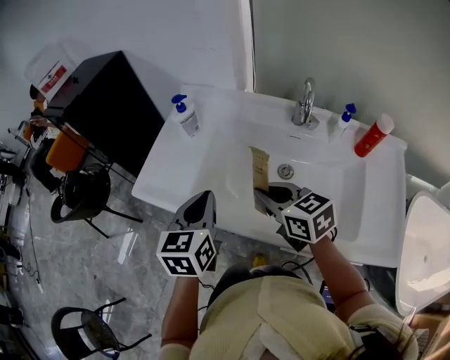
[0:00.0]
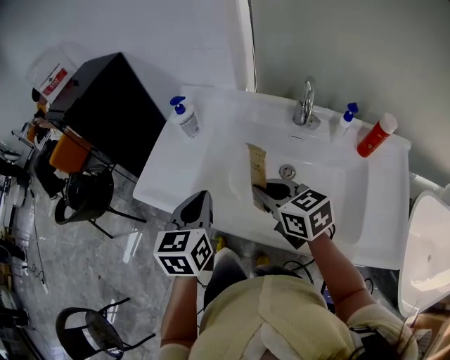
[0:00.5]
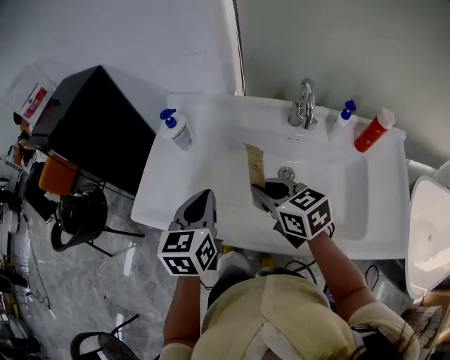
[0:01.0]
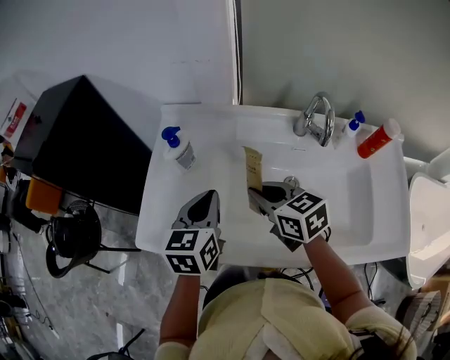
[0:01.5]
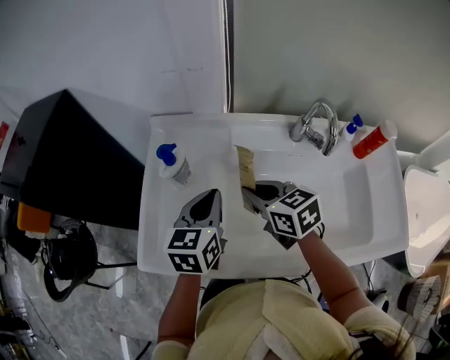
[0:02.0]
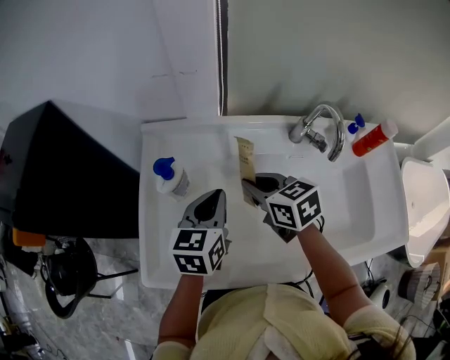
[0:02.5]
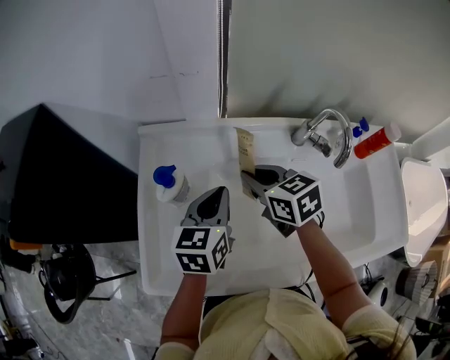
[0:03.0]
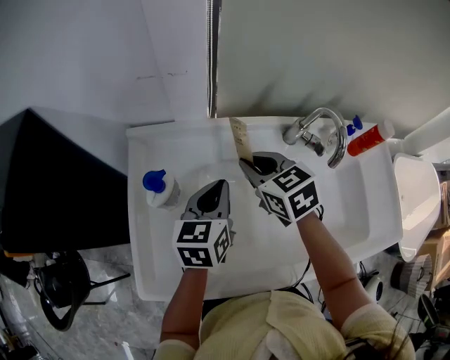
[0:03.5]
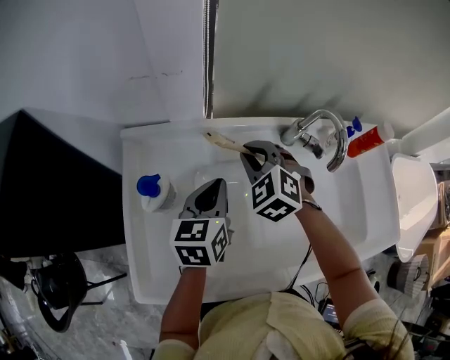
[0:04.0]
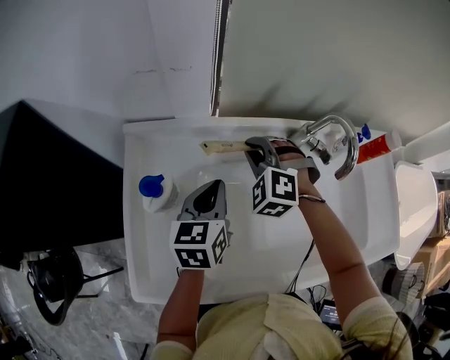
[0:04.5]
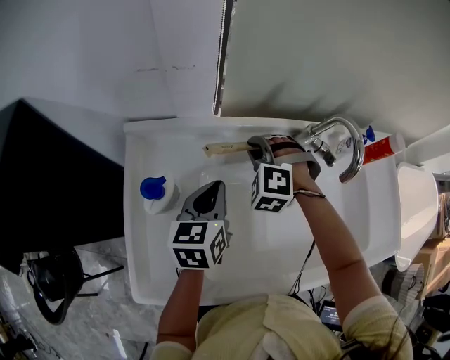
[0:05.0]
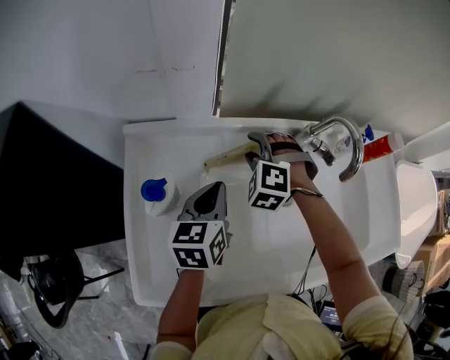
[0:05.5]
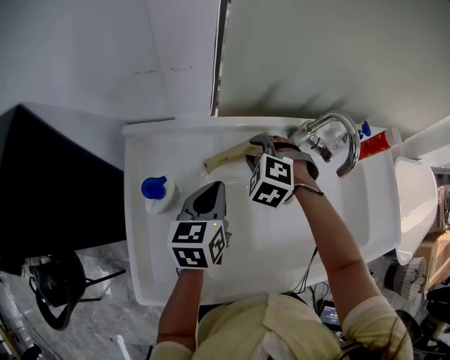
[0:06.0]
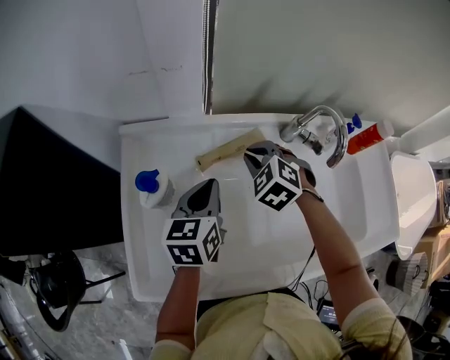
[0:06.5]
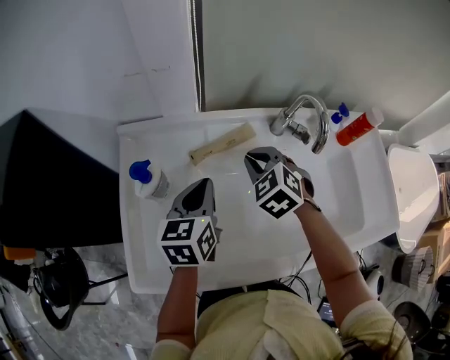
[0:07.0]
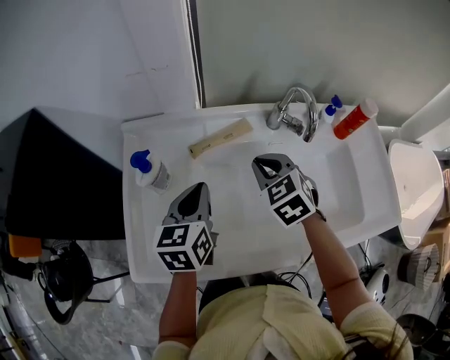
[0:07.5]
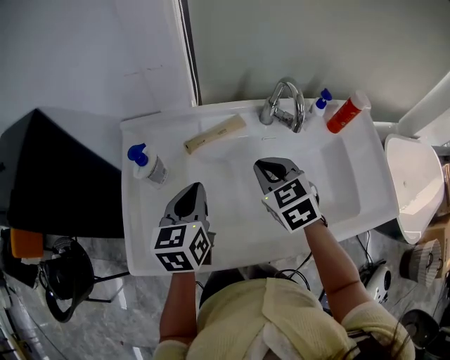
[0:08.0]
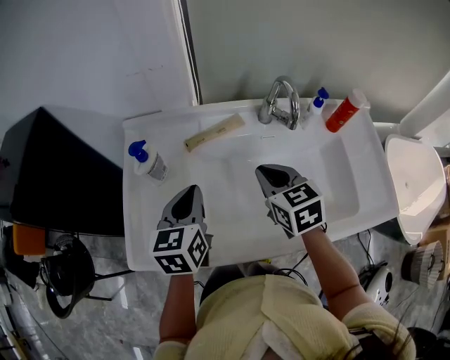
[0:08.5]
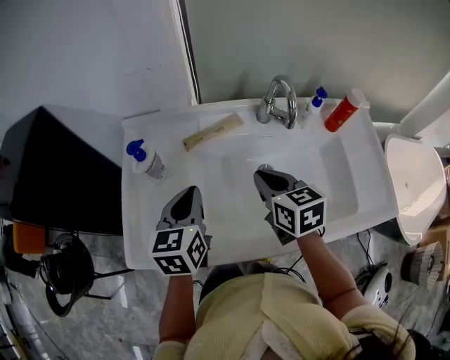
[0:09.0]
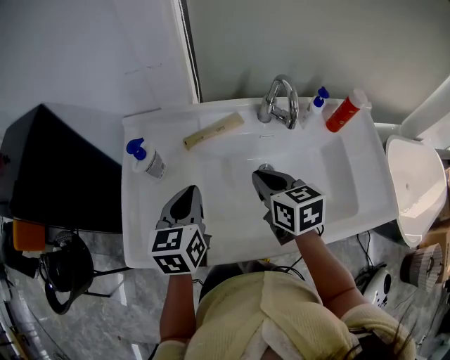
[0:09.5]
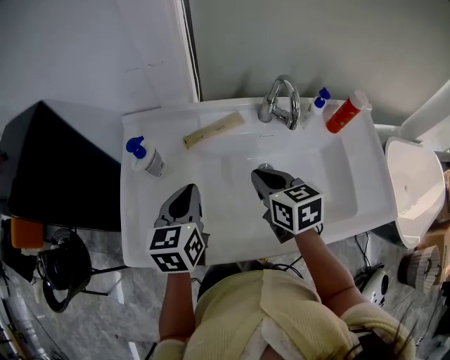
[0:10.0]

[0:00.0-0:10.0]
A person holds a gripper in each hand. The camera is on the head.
0:00.0 to 0:02.0: Both grippers move forward, roughly 20 cm. The left gripper changes its angle by roughly 20 degrees.
0:02.0 to 0:04.0: The left gripper goes about 10 cm forward, while the right gripper shifts about 15 cm forward, and twists about 40 degrees counterclockwise, seen from behind.
0:04.0 to 0:06.0: The right gripper goes some 5 cm downward, swivels some 20 degrees, and opens up.
0:06.0 to 0:08.0: The left gripper moves backward and upward, approximately 10 cm; the right gripper travels backward, upward and to the right by roughly 20 cm, rotates around the line of its fingers by approximately 40 degrees, clockwise from behind, and closes its fingers.
0:08.0 to 0:10.0: The right gripper rotates approximately 30 degrees.

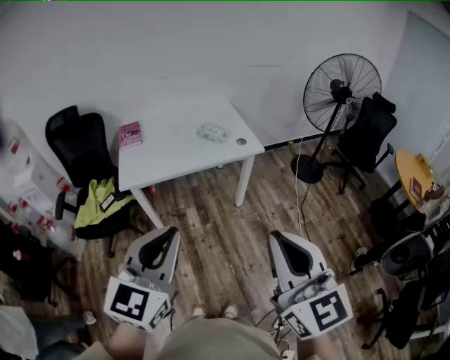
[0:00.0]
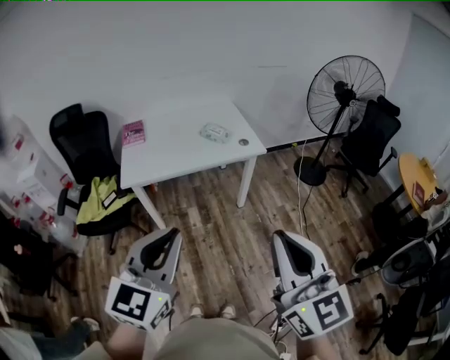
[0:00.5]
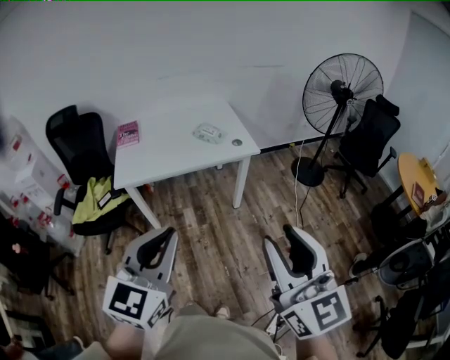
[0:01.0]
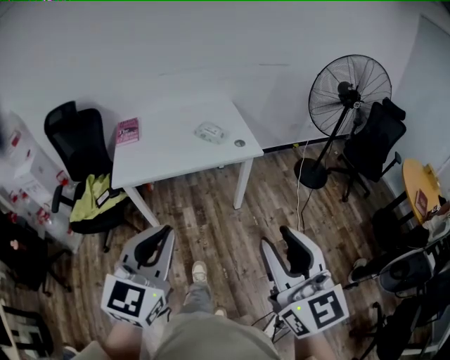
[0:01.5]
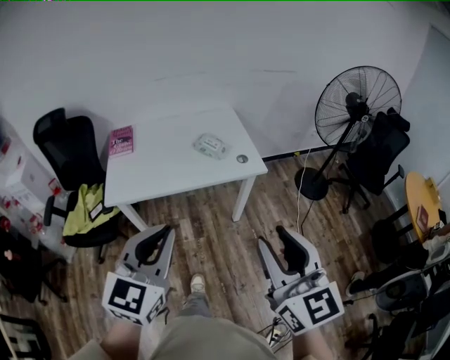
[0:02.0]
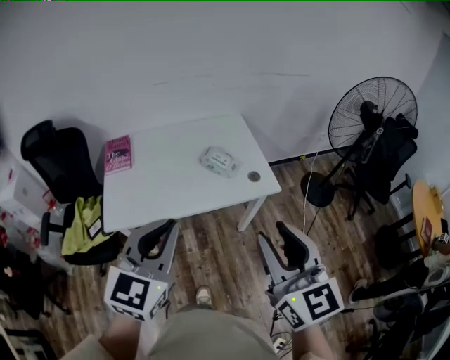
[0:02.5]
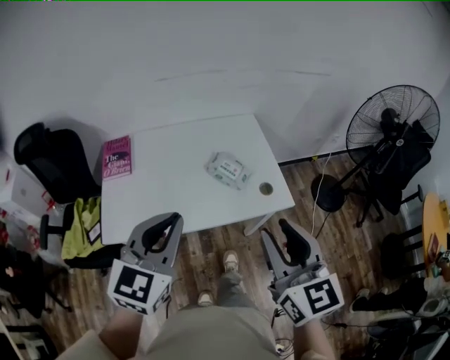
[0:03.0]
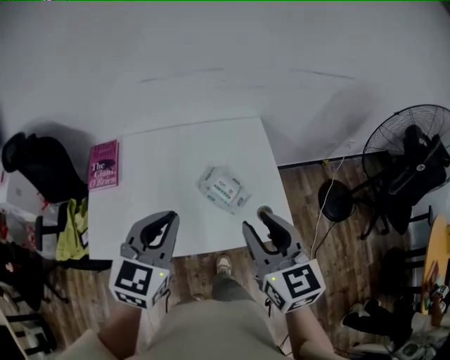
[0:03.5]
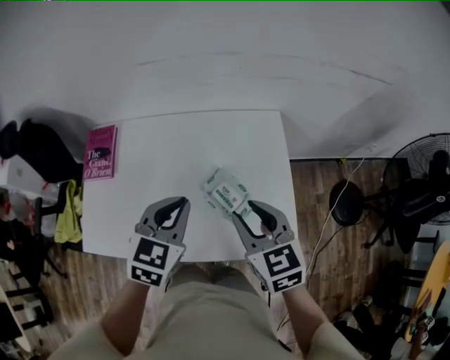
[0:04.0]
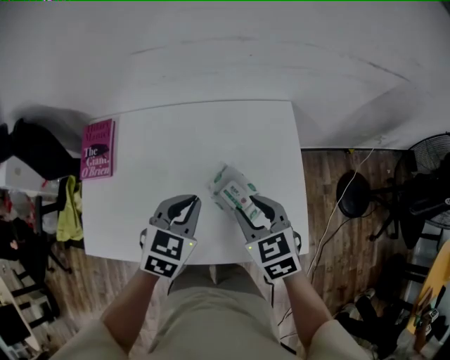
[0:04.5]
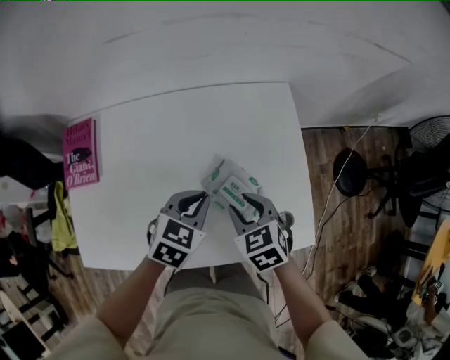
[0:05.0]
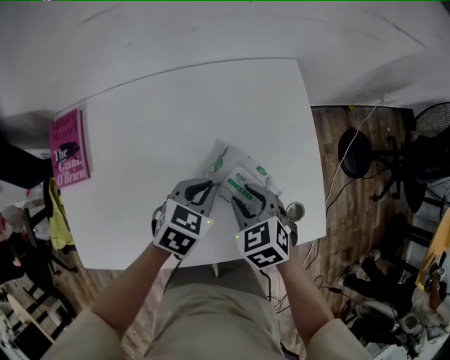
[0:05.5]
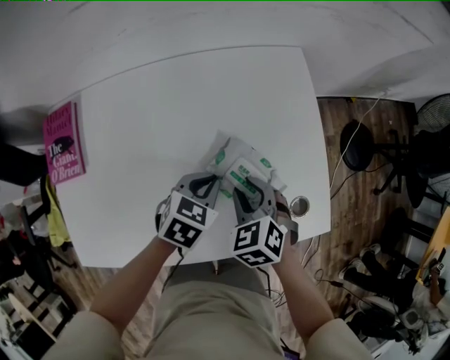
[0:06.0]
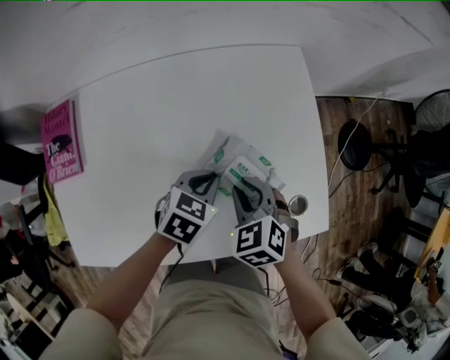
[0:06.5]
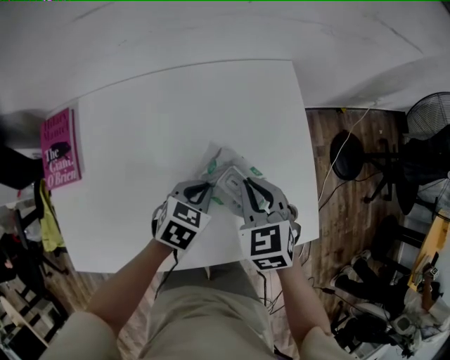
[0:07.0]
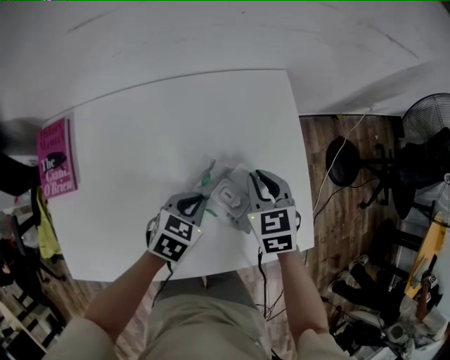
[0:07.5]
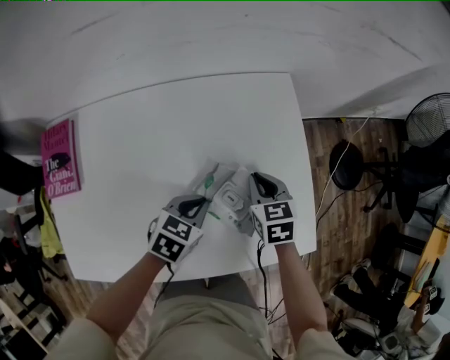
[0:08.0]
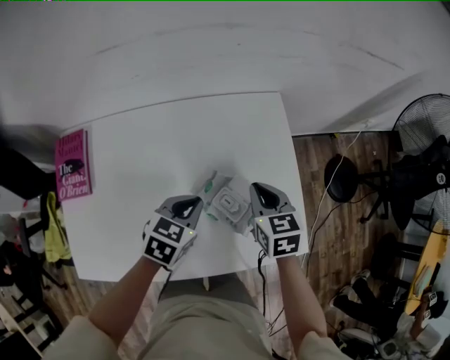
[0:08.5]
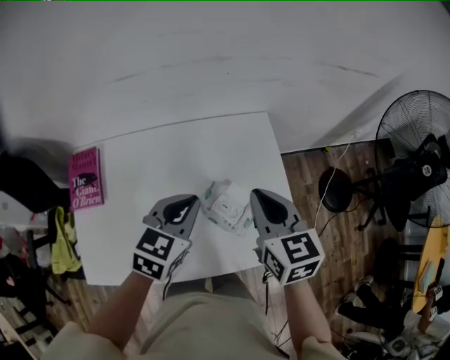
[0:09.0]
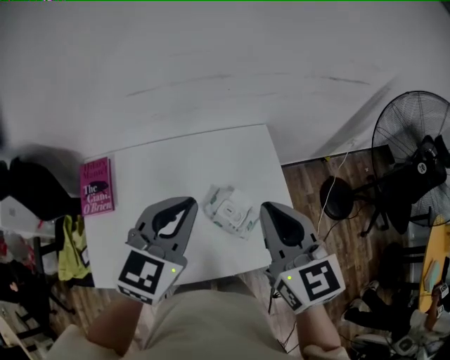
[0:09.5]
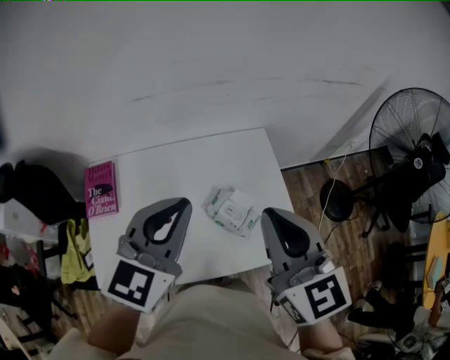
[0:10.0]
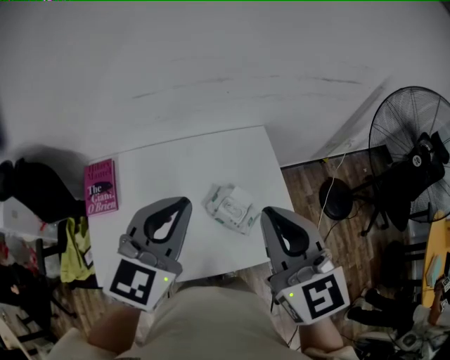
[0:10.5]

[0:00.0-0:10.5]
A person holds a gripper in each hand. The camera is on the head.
0:00.0 to 0:02.0: Both grippers move forward, approximately 20 cm. The right gripper opens up.
0:02.0 to 0:04.0: The pair of grippers is taken forward, approximately 60 cm. The left gripper rotates approximately 30 degrees. The right gripper turns by some 30 degrees.
0:04.0 to 0:06.5: The two grippers go roughly 25 cm downward. The right gripper swivels about 30 degrees, while the left gripper turns by roughly 30 degrees.
0:06.5 to 0:08.5: The right gripper goes some 10 cm forward, upward and to the right, and swivels about 30 degrees; the left gripper goes some 10 cm upward.
0:08.5 to 0:10.5: The right gripper goes some 35 cm upward and backward, and tilts its fingers about 30 degrees upward. Meanwhile the left gripper goes about 30 cm upward, and tips its fingers upward by about 30 degrees.

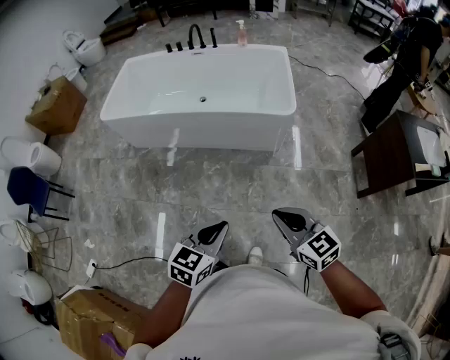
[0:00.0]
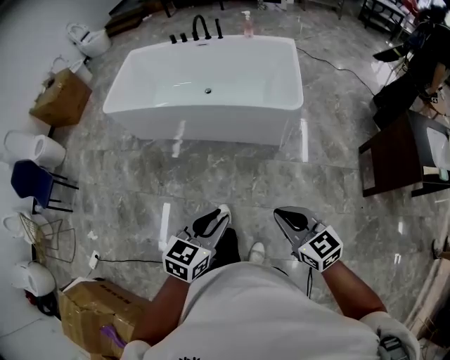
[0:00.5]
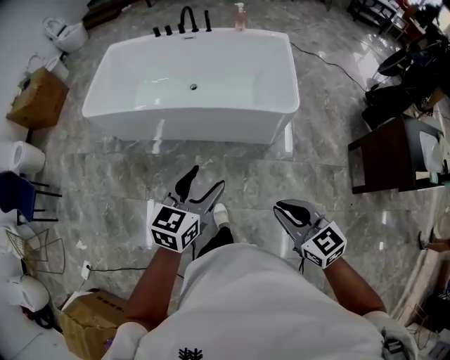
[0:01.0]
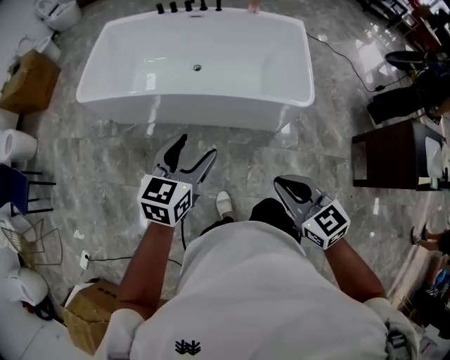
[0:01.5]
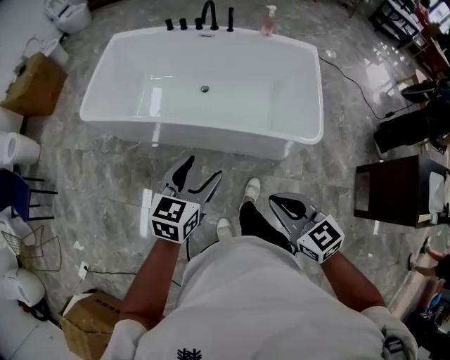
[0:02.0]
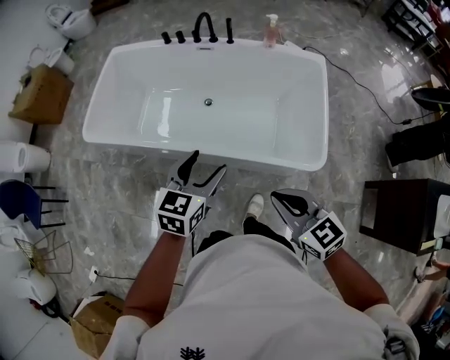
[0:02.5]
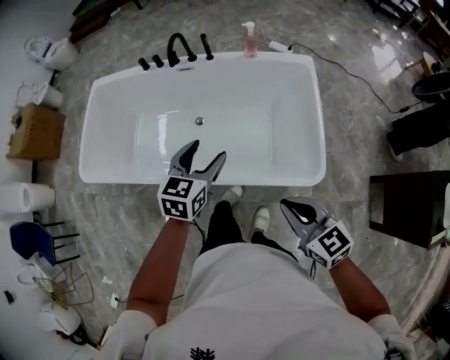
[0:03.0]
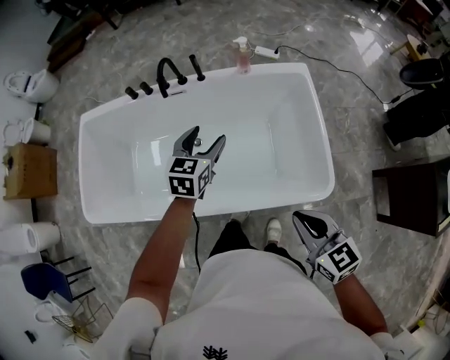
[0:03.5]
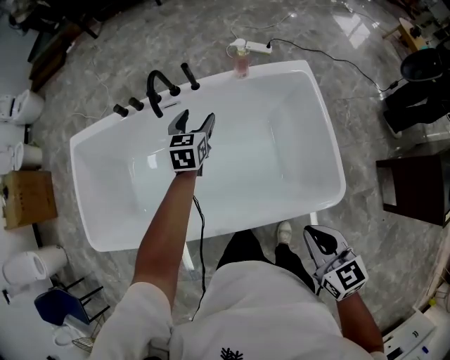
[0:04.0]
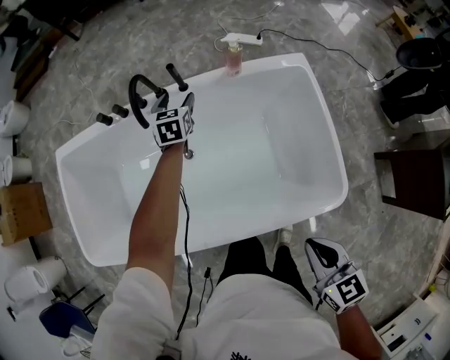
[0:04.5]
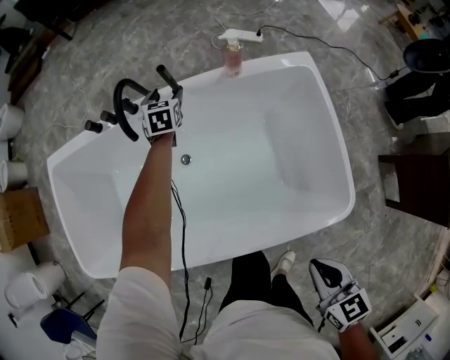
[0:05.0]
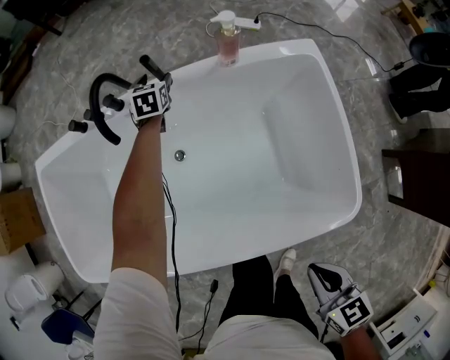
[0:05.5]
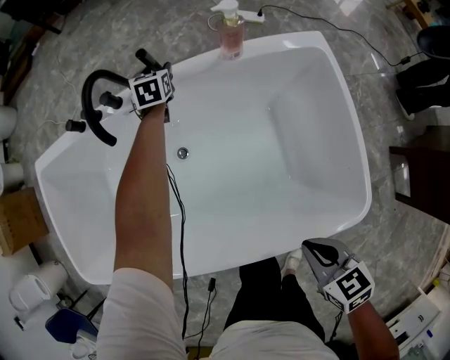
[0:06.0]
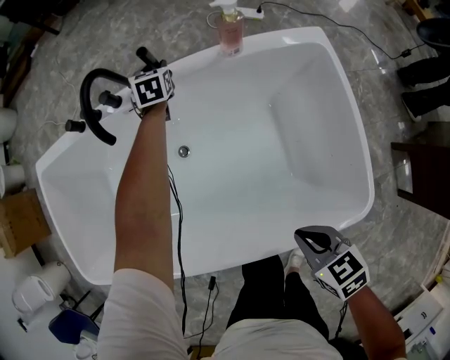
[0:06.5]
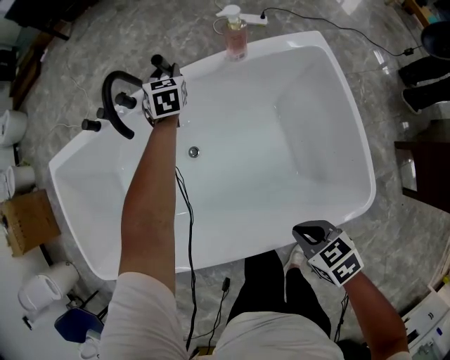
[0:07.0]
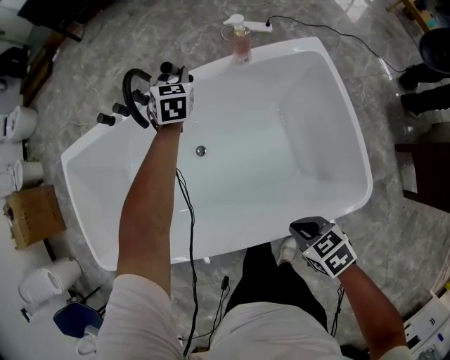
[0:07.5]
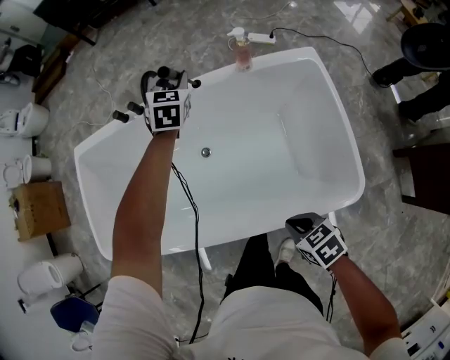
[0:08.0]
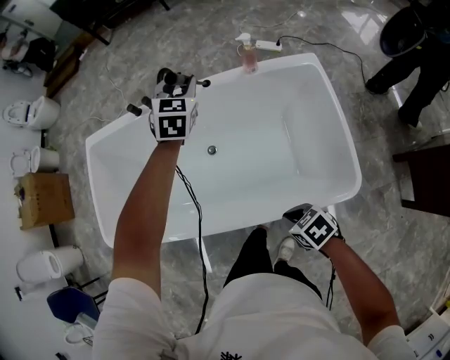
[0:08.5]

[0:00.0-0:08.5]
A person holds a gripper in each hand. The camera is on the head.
0:00.0 to 0:02.0: Both grippers travel together forward, approximately 40 cm. The left gripper opens up.
0:02.0 to 0:04.0: The two grippers travel together, forward, about 60 cm. The right gripper swivels some 30 degrees.
0:04.0 to 0:06.5: The left gripper travels forward and downward by approximately 35 cm, and closes; the right gripper heads downward and forward, covering some 25 cm, and rotates roughly 30 degrees.
0:06.5 to 0:08.5: The left gripper shifts about 40 cm upward and backward, and swivels some 20 degrees, while the right gripper moves backward, to the left and upward, some 15 cm.
